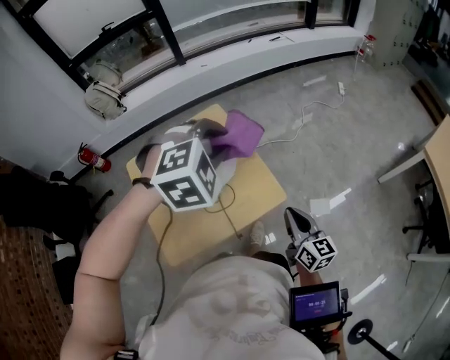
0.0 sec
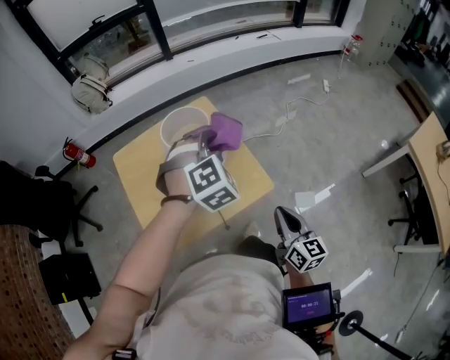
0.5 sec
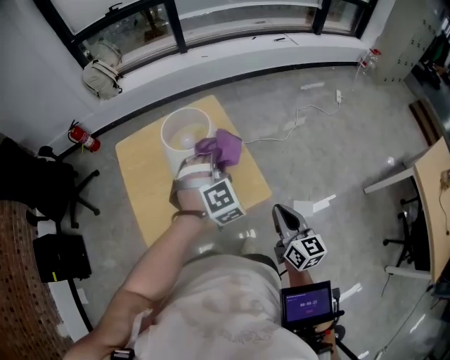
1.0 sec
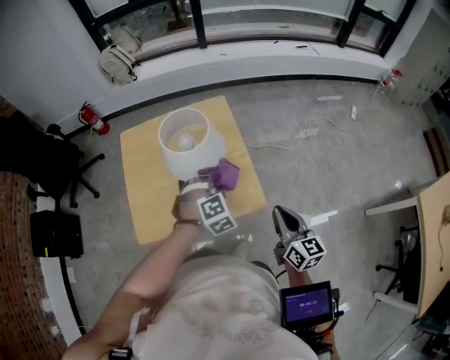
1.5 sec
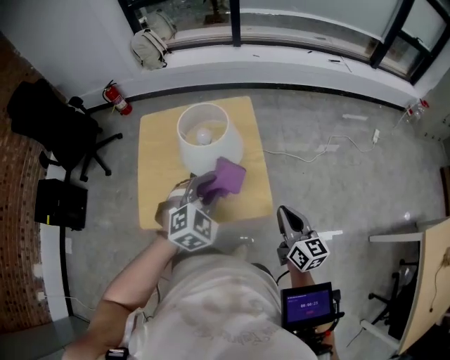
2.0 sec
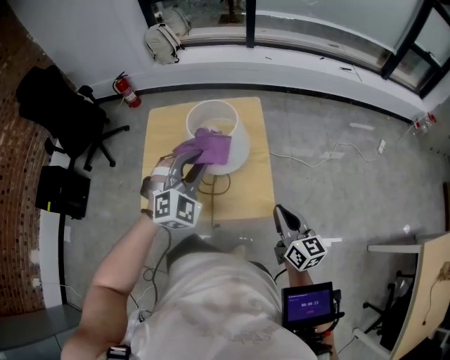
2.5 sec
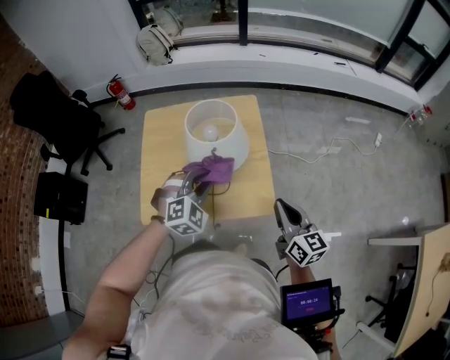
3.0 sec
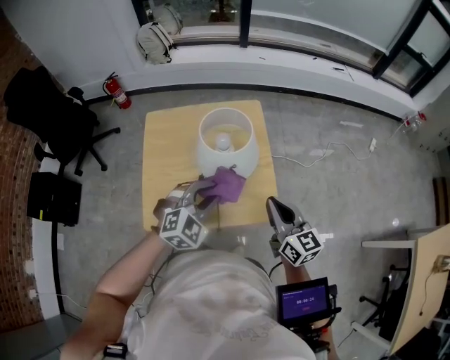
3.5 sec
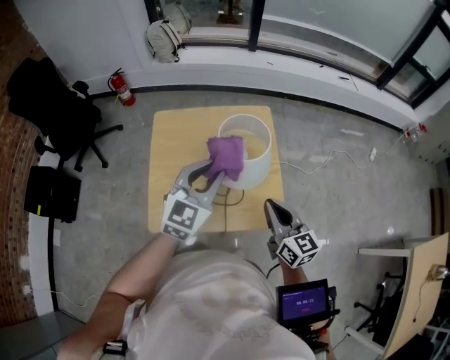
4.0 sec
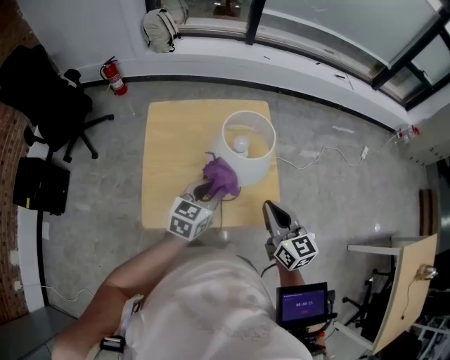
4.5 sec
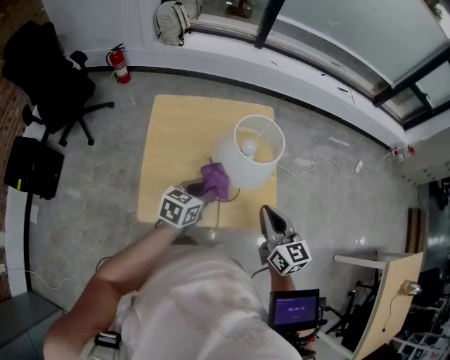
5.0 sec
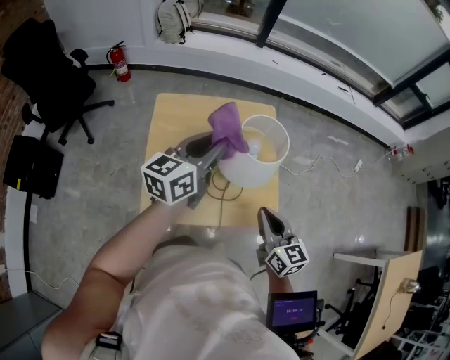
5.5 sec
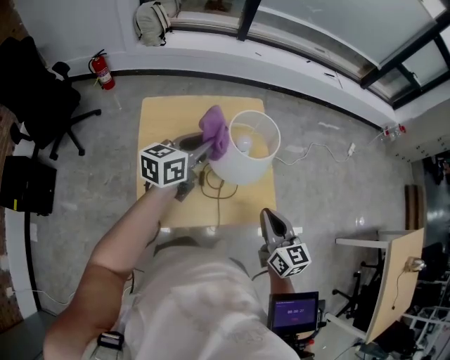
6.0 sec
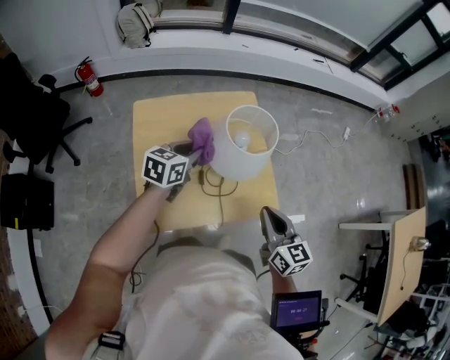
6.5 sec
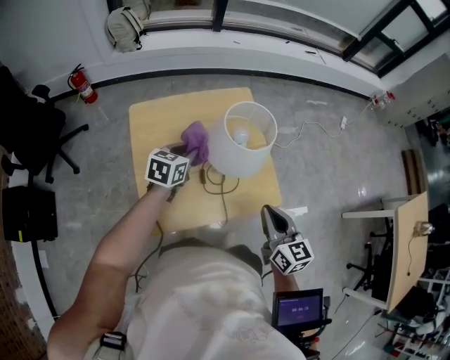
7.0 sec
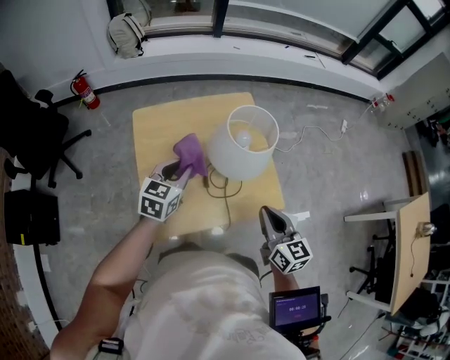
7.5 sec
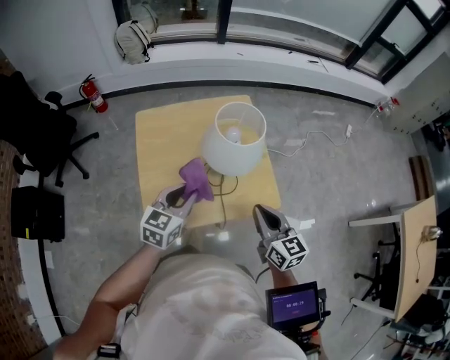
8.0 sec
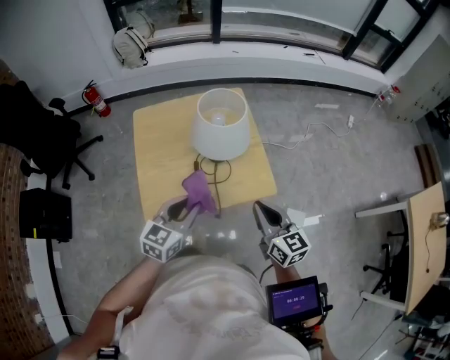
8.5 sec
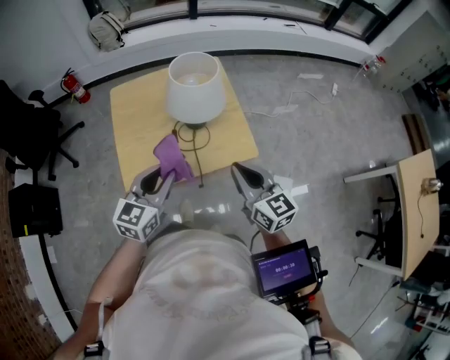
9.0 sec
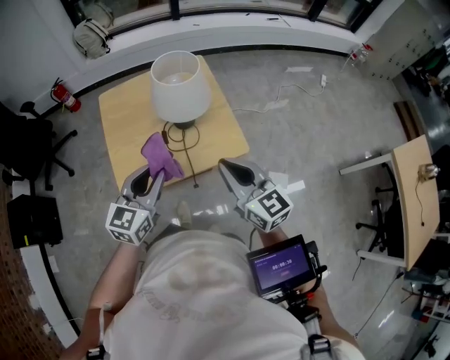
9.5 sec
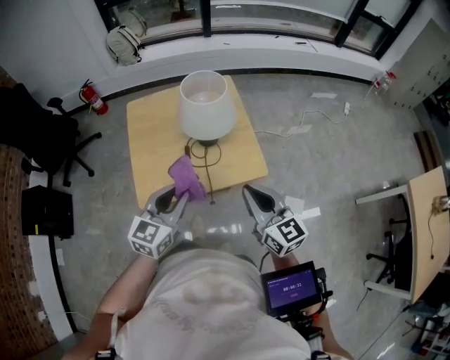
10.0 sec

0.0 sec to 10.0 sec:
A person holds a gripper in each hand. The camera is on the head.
0.0 sec to 2.0 sec: The left gripper moves downward, approximately 15 cm, and rotates roughly 40 degrees. Meanwhile the right gripper ends up some 10 cm from where it was, and swivels about 20 degrees.
2.0 sec to 4.0 sec: The right gripper heads to the left and forward, covering about 15 cm; the left gripper swings up and down, about 10 cm each way, with 2 reversals, and turns by some 40 degrees.
4.0 sec to 6.0 sec: The left gripper moves up and down over some 20 cm, changing direction 2 times, and rotates some 40 degrees.
6.0 sec to 8.0 sec: The left gripper heads backward and downward, covering approximately 15 cm, and turns by approximately 20 degrees.
8.0 sec to 10.0 sec: The left gripper shifts approximately 15 cm backward, to the right and upward, while the right gripper travels backward and upward by approximately 10 cm.

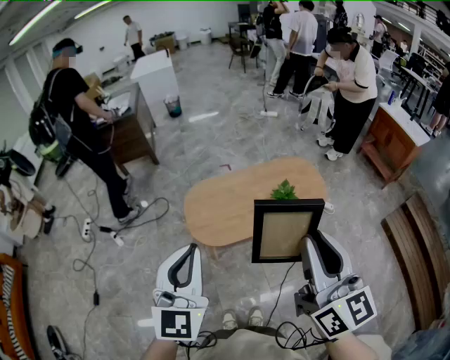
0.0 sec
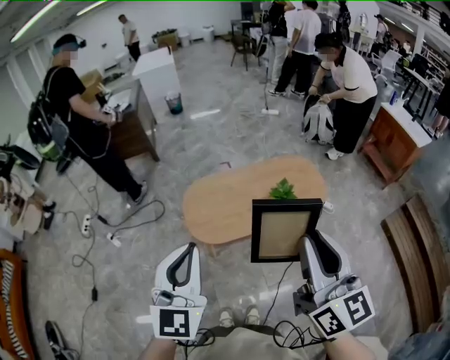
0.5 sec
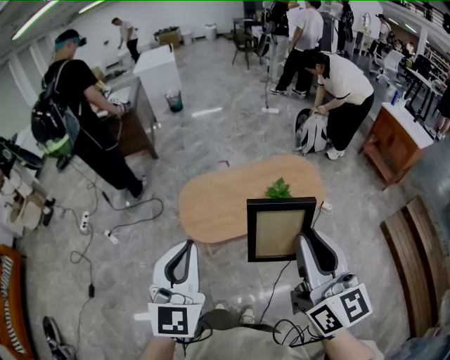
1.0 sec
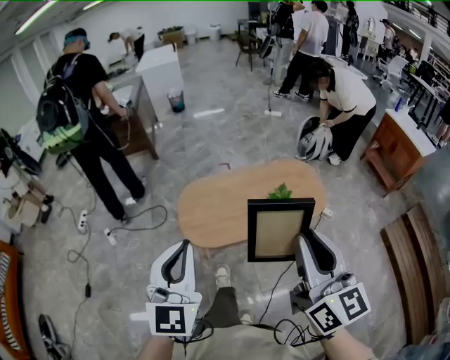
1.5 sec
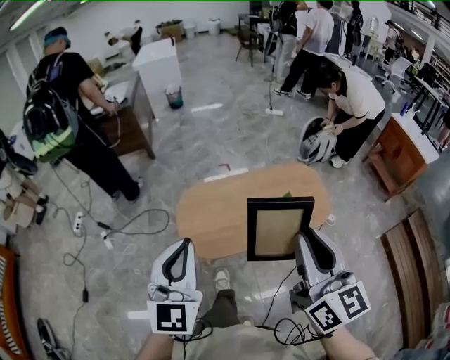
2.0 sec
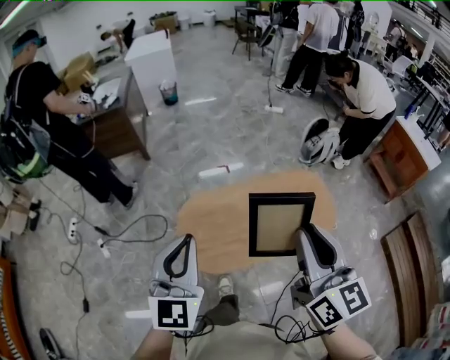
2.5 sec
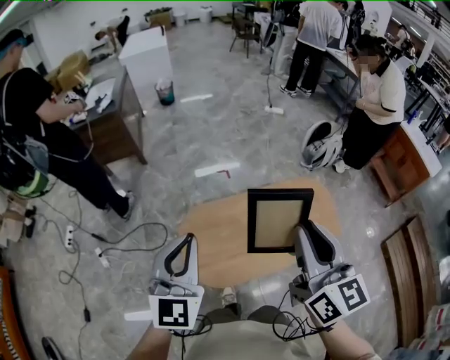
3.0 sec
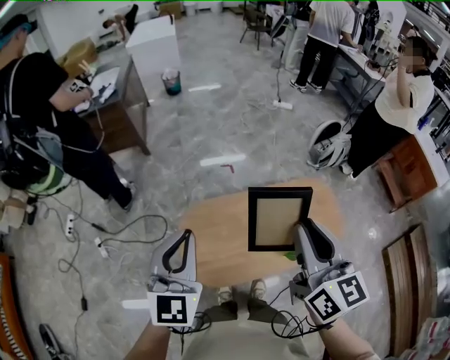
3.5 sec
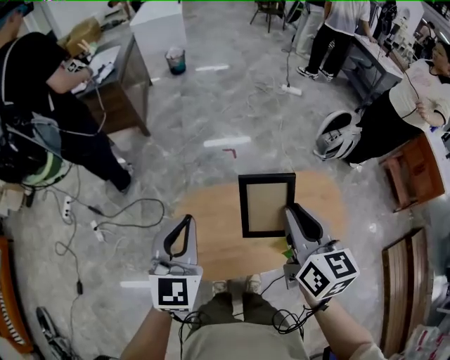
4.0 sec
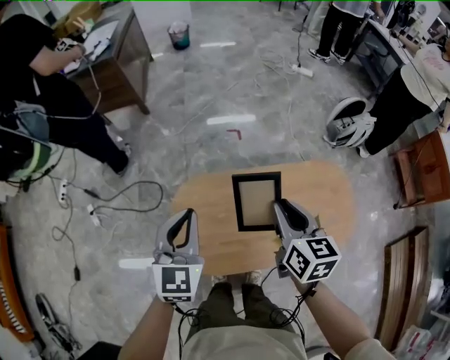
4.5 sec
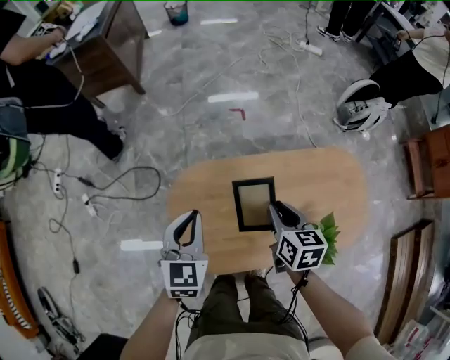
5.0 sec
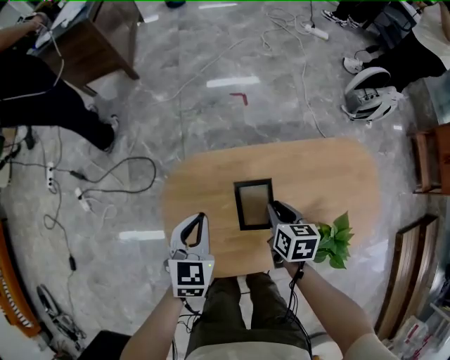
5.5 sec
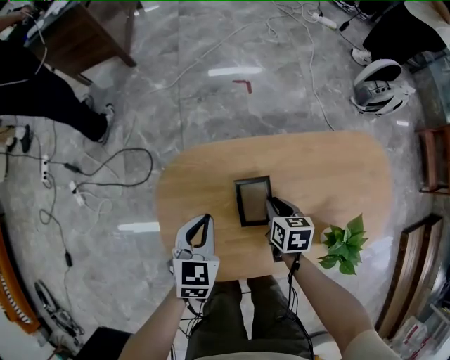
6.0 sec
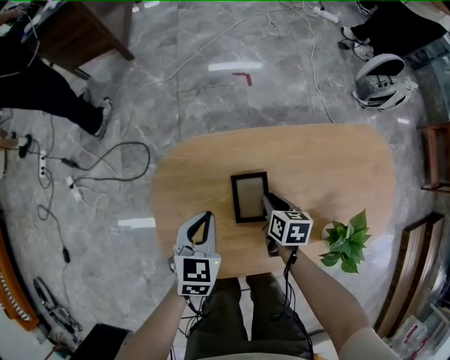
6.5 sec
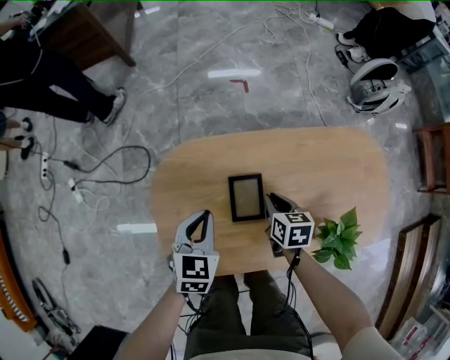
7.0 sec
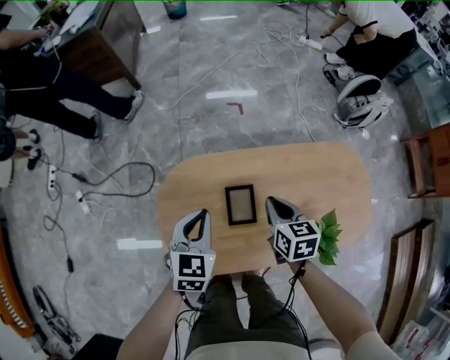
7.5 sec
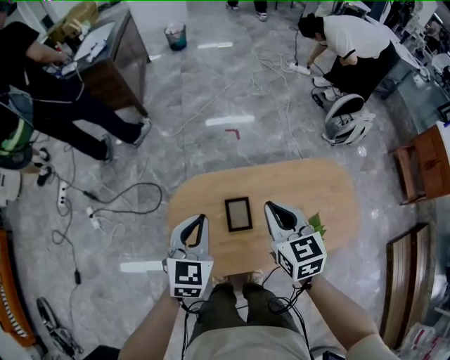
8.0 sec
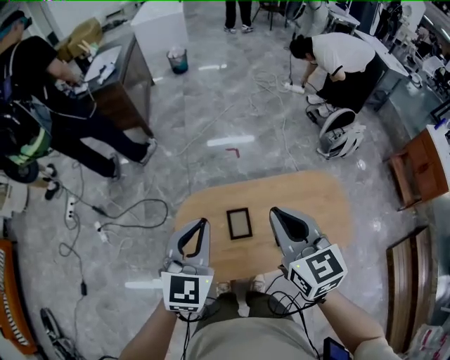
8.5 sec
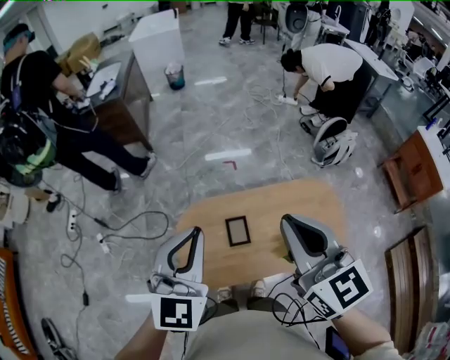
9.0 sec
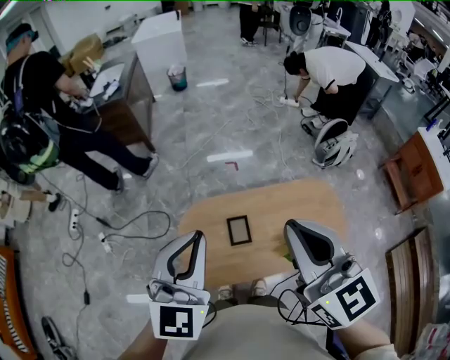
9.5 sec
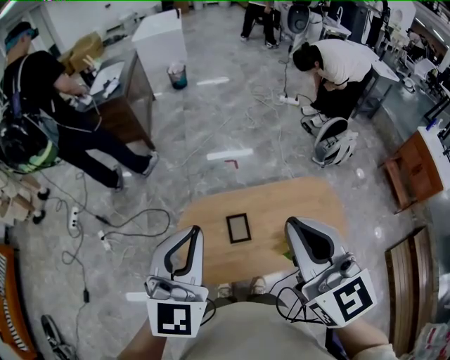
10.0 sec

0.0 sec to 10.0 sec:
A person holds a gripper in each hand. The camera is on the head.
0.0 sec to 2.0 sec: Both grippers move forward, approximately 15 cm.
2.0 sec to 4.0 sec: Both grippers travel together forward, roughly 35 cm.
4.0 sec to 6.0 sec: The two grippers go about 50 cm downward. The left gripper turns by approximately 30 degrees. Meanwhile the right gripper points its fingers roughly 40 degrees further downward.
6.0 sec to 8.0 sec: Both grippers travel together upward, about 30 cm. The right gripper swivels about 40 degrees.
8.0 sec to 10.0 sec: The grippers both shift upward by approximately 30 cm. The left gripper swivels some 30 degrees. Meanwhile the right gripper changes its angle by about 30 degrees.

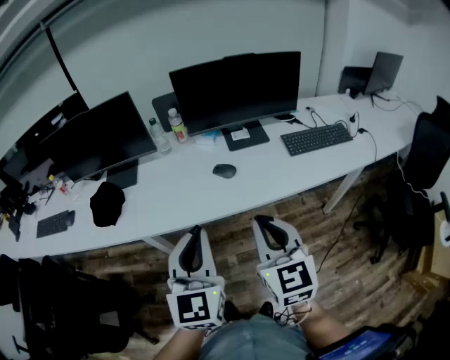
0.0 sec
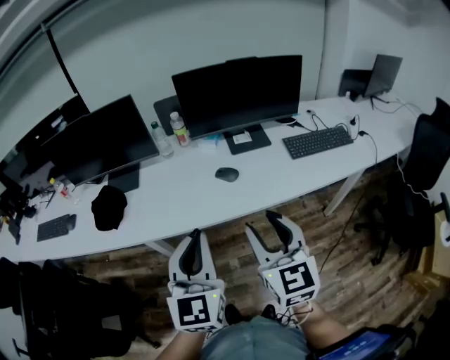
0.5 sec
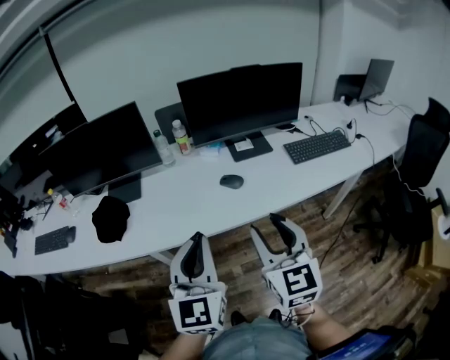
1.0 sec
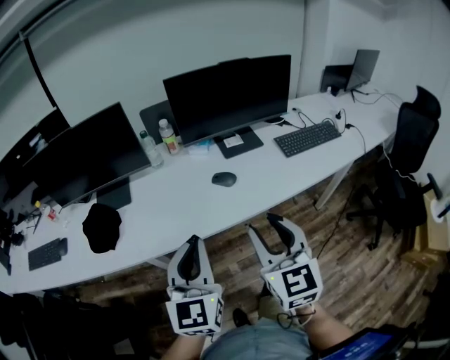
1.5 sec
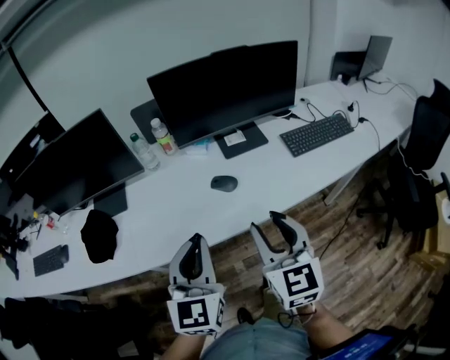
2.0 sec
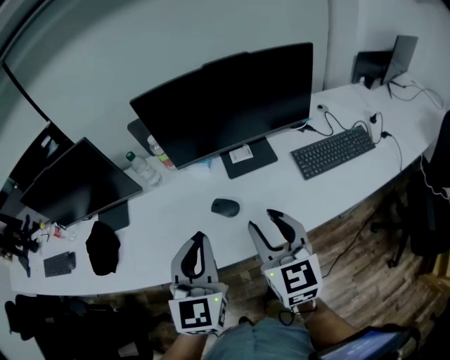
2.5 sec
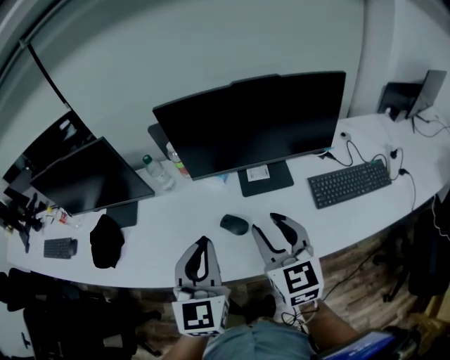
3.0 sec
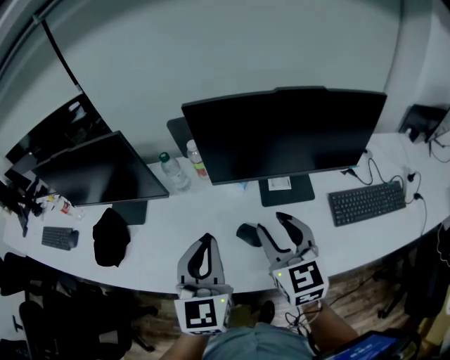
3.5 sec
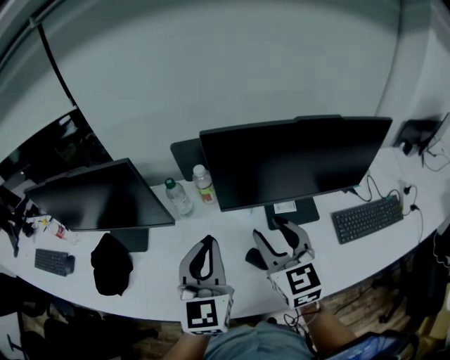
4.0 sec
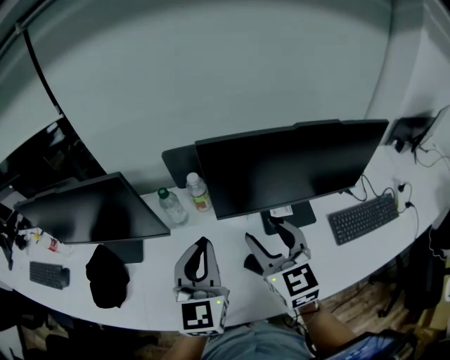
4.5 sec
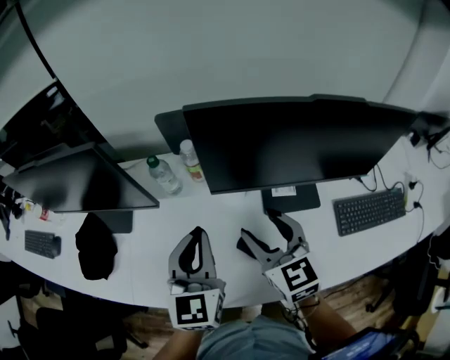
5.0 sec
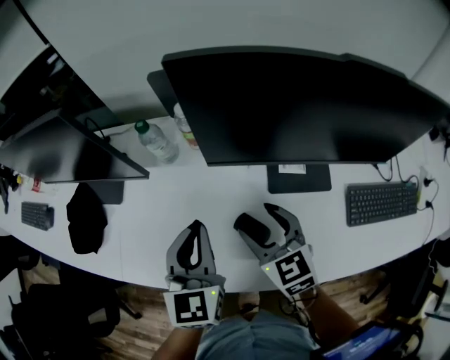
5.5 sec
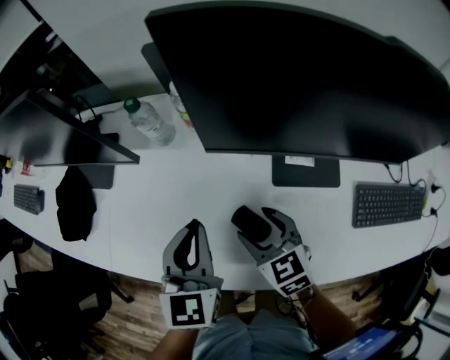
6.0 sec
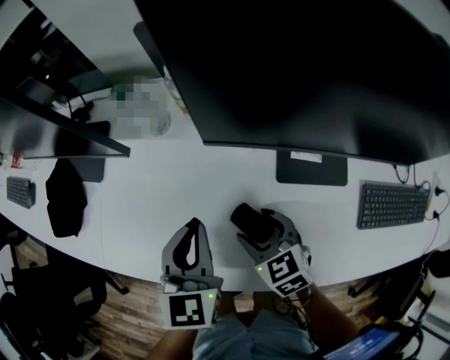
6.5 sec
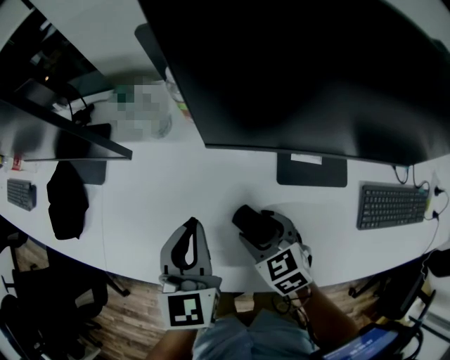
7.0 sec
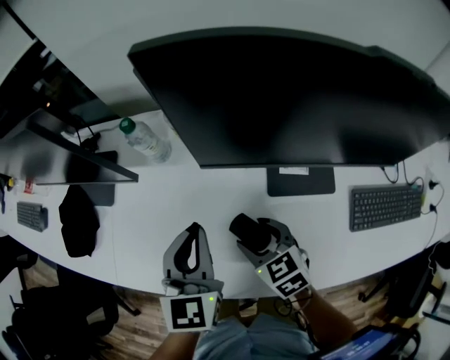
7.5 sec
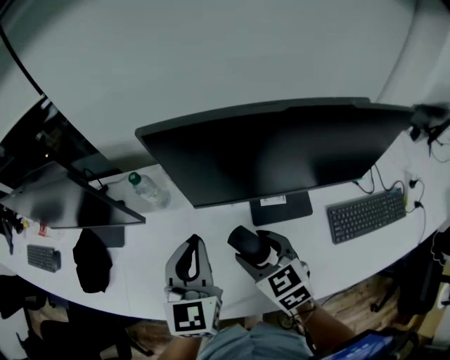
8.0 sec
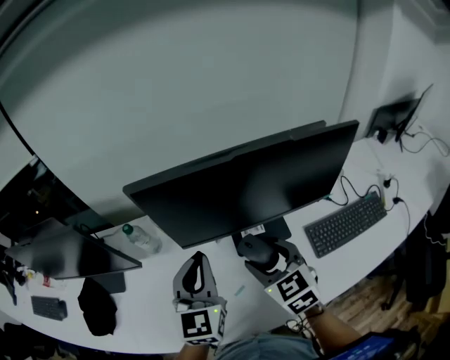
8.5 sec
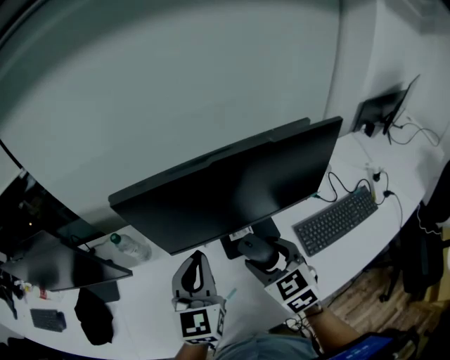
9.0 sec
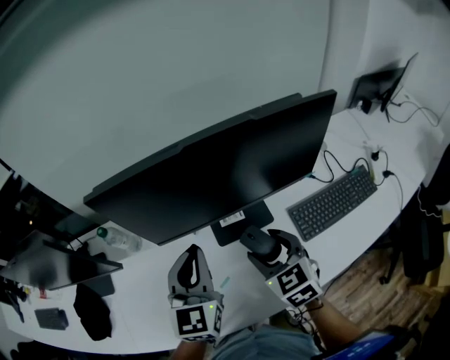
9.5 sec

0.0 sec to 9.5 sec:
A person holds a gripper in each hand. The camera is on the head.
0.0 sec to 2.0 sec: Both grippers move forward, about 10 cm. The right gripper opens its fingers.
2.0 sec to 4.0 sec: The grippers both shift forward by about 25 cm.
4.0 sec to 5.5 sec: The two grippers go about 10 cm downward. The right gripper swivels roughly 20 degrees.
5.5 sec to 7.5 sec: The right gripper heads downward, covering roughly 10 cm.
7.5 sec to 9.5 sec: The left gripper ends up roughly 15 cm from where it was, and swivels roughly 20 degrees; the right gripper ends up roughly 20 cm from where it was, and swivels roughly 30 degrees.
